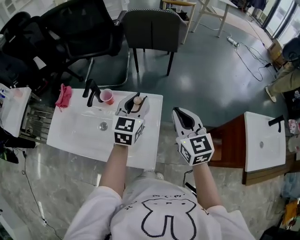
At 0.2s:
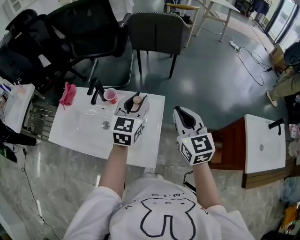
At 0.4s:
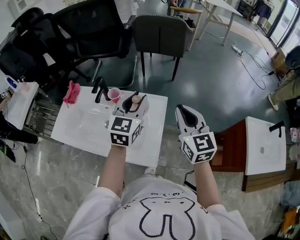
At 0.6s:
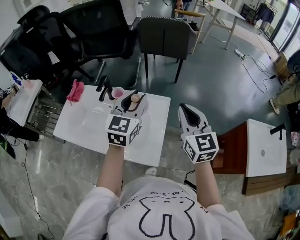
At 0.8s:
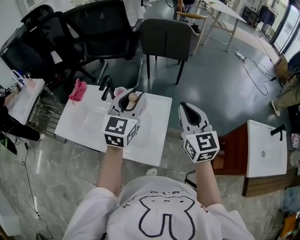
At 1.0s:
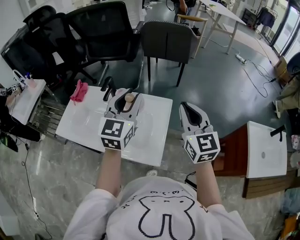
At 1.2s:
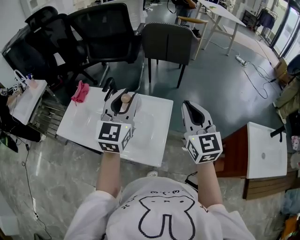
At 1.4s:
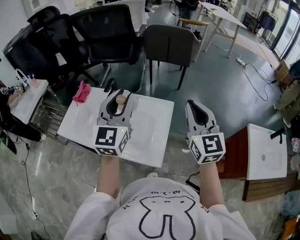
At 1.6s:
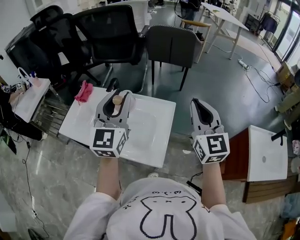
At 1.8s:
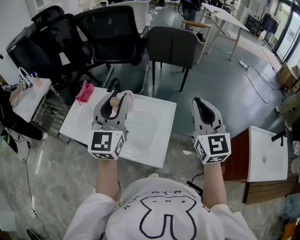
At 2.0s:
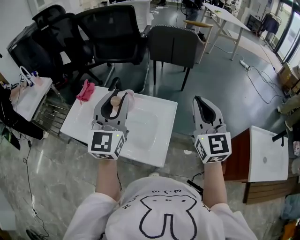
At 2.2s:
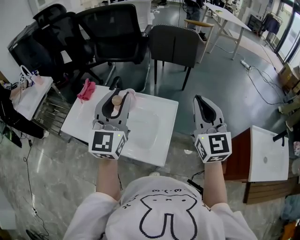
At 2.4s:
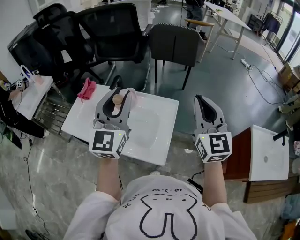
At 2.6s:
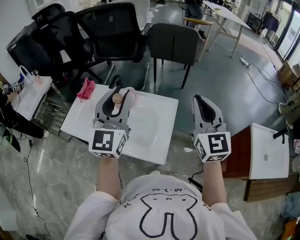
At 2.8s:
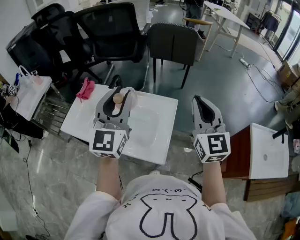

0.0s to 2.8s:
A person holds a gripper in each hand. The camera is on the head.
0.0s to 1.4s: The left gripper goes about 20 cm upward, to the left and backward, and turns by approximately 20 degrees. The right gripper heads upward, covering roughly 10 cm.
1.4s to 2.8s: The grippers move only a little.

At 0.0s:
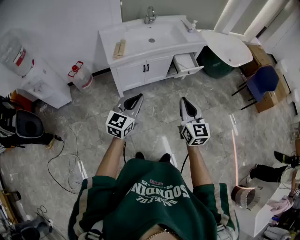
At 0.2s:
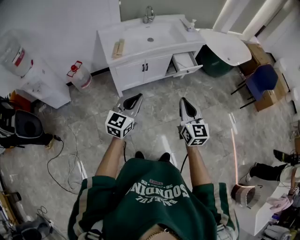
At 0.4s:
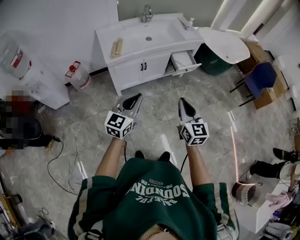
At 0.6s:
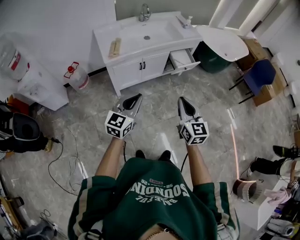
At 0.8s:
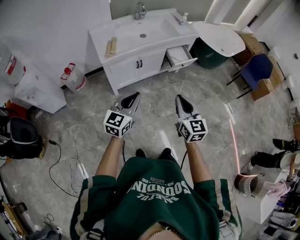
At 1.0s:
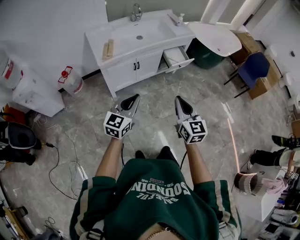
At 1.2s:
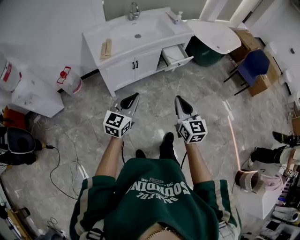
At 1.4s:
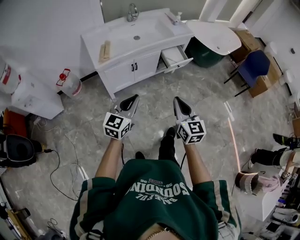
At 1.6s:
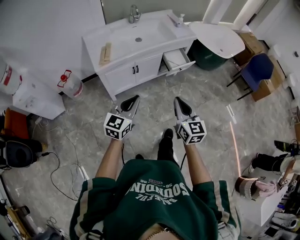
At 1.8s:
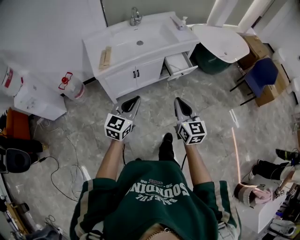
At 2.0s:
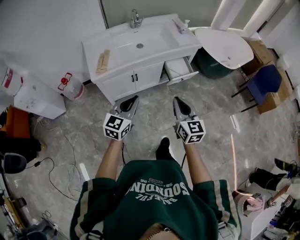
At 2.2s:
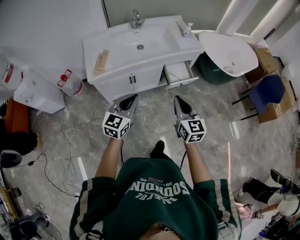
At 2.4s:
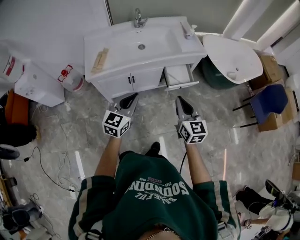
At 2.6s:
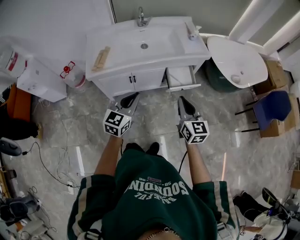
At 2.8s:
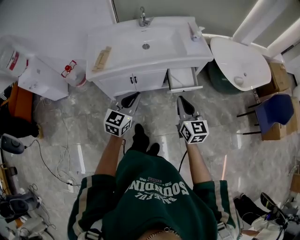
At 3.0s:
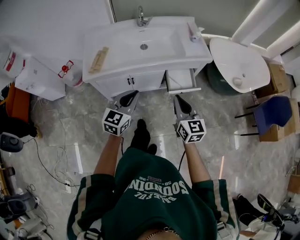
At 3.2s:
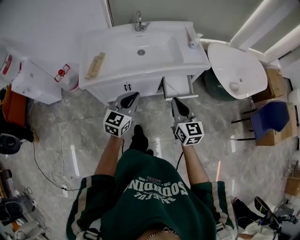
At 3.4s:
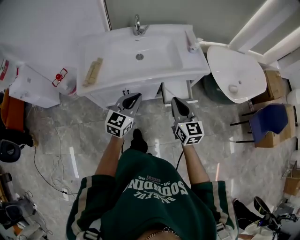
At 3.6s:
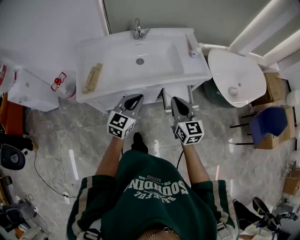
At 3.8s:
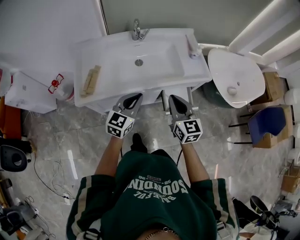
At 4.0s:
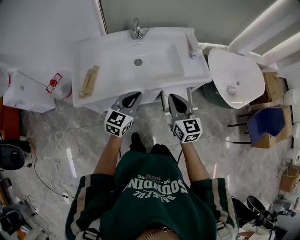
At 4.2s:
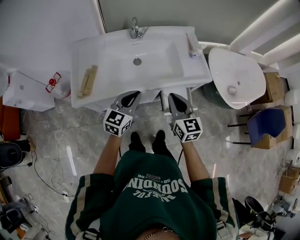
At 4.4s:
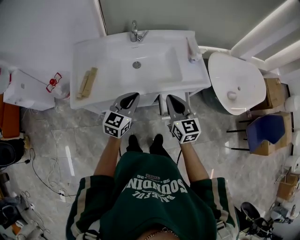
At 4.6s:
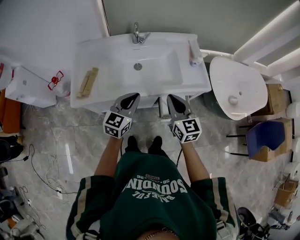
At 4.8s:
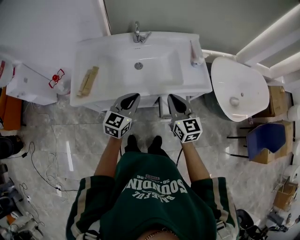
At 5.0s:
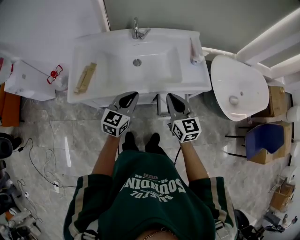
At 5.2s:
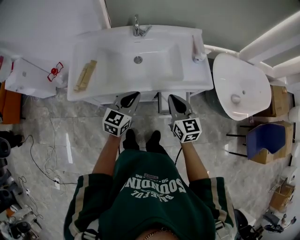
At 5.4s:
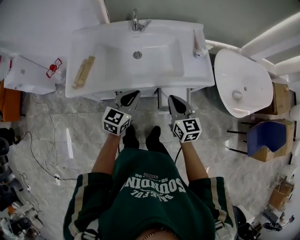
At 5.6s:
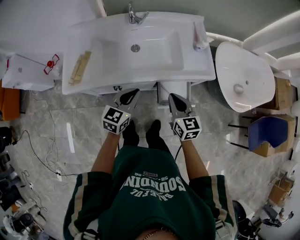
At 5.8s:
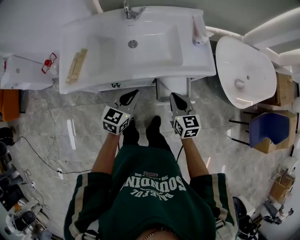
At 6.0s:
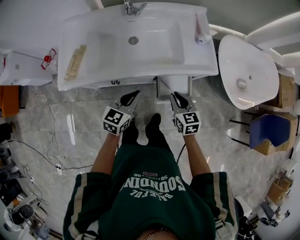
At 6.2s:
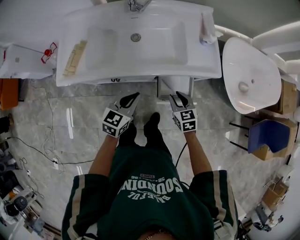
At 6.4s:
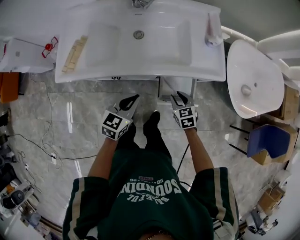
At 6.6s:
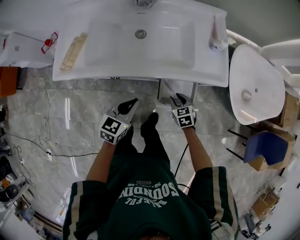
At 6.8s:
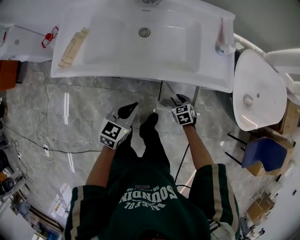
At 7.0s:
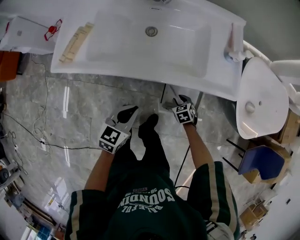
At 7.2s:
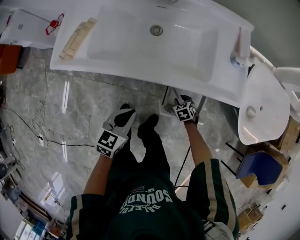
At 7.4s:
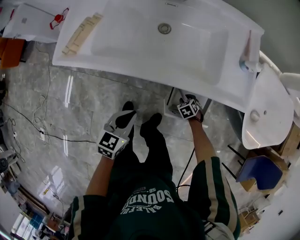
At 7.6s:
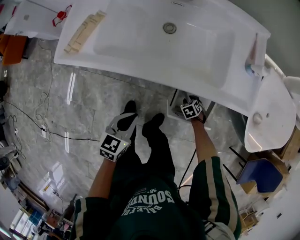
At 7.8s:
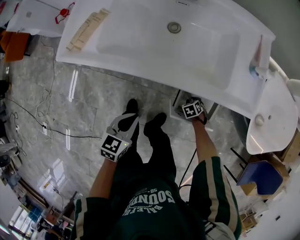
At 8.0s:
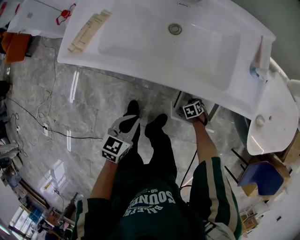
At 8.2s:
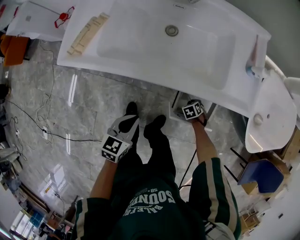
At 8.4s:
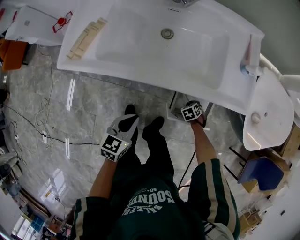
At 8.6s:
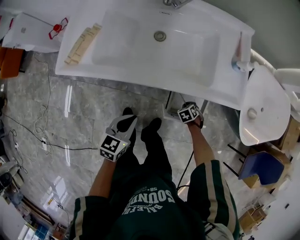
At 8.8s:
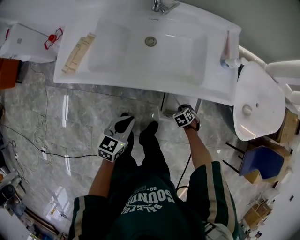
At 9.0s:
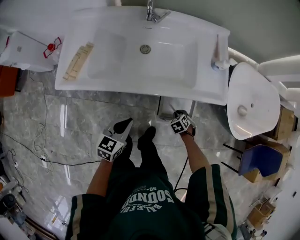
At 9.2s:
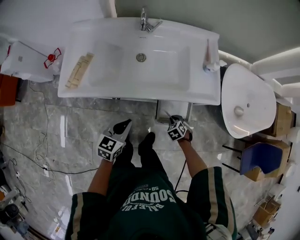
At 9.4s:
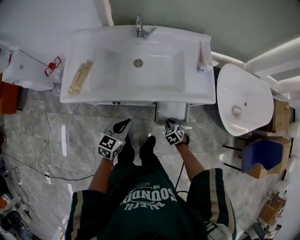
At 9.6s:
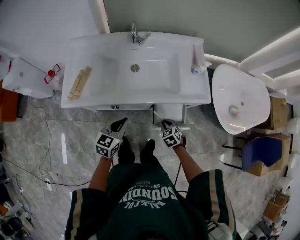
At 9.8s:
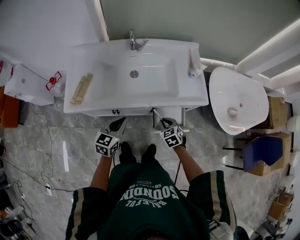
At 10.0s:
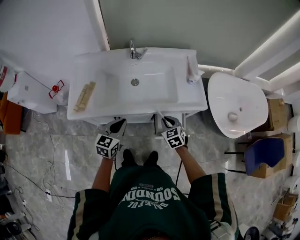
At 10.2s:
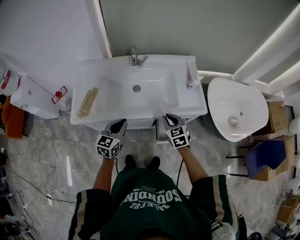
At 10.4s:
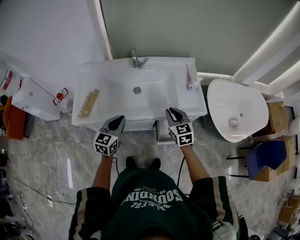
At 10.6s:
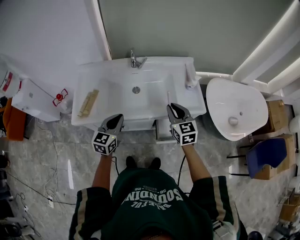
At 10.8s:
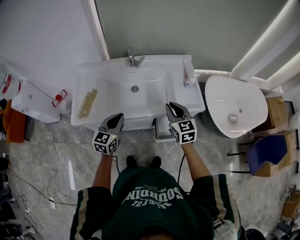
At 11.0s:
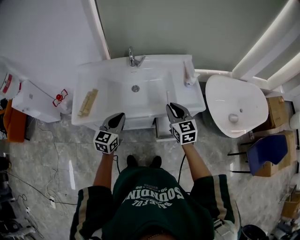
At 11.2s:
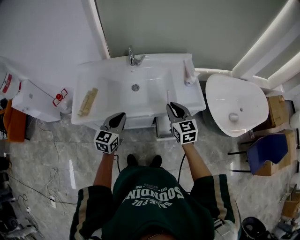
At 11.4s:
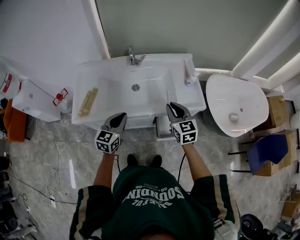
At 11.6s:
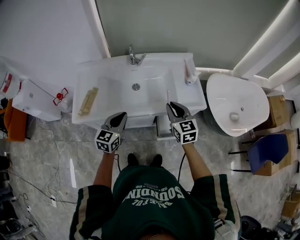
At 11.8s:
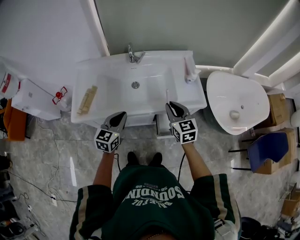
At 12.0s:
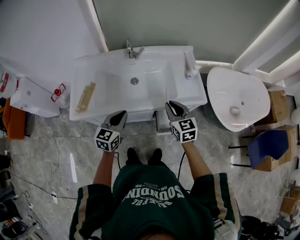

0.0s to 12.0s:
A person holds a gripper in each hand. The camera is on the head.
0.0s to 1.6s: The two grippers go approximately 5 cm forward.
1.6s to 3.0s: Both grippers move forward and to the right, approximately 30 cm.
3.0s to 4.4s: Both grippers travel together forward, about 20 cm.
4.4s to 6.0s: The right gripper goes some 20 cm downward and to the right, and turns by about 20 degrees. Meanwhile the left gripper is displaced downward and to the right by some 10 cm.
6.0s to 7.6s: The left gripper shifts approximately 15 cm downward, and swivels approximately 20 degrees, while the right gripper goes about 40 cm downward, and angles its fingers downward, by approximately 50 degrees.
7.6s to 9.0s: The left gripper travels upward by some 5 cm. The right gripper is displaced upward by approximately 15 cm.
9.0s to 10.4s: The right gripper heads upward, covering roughly 40 cm, and tilts its fingers about 50 degrees upward. Meanwhile the left gripper shifts approximately 15 cm upward.
10.4s to 12.0s: The grippers move only a little.

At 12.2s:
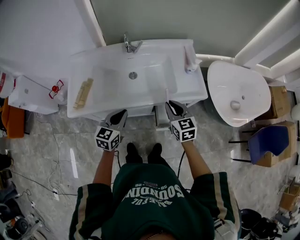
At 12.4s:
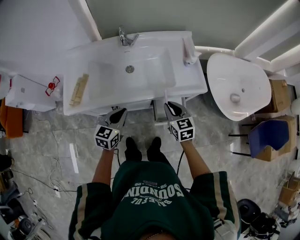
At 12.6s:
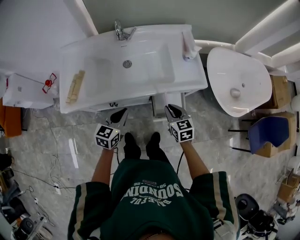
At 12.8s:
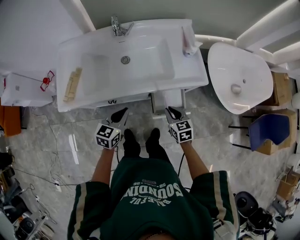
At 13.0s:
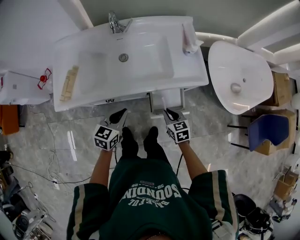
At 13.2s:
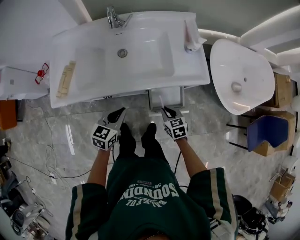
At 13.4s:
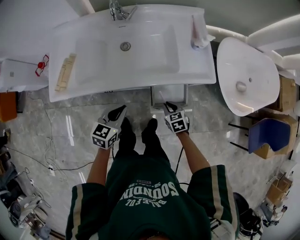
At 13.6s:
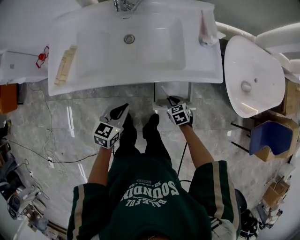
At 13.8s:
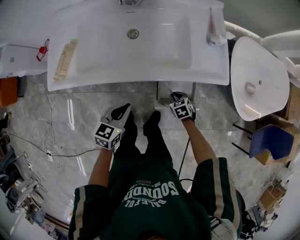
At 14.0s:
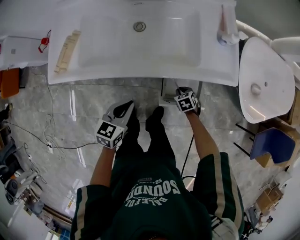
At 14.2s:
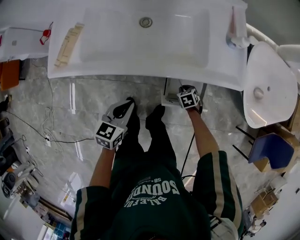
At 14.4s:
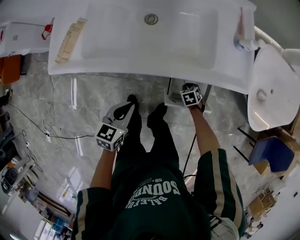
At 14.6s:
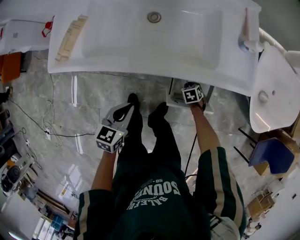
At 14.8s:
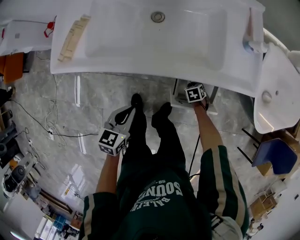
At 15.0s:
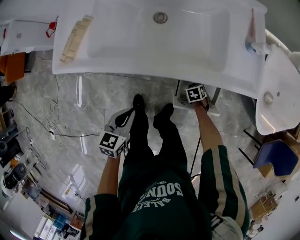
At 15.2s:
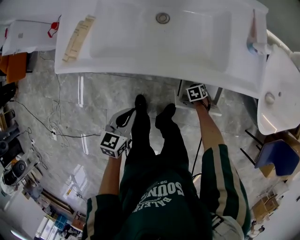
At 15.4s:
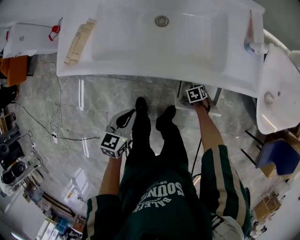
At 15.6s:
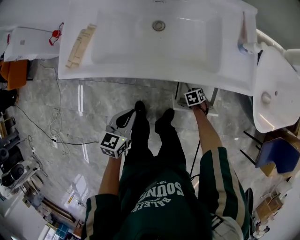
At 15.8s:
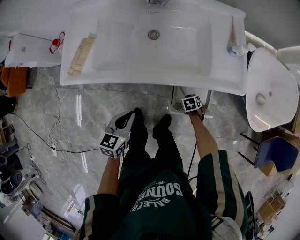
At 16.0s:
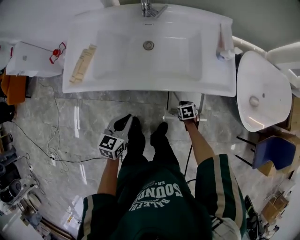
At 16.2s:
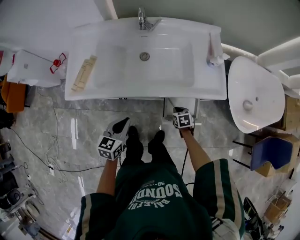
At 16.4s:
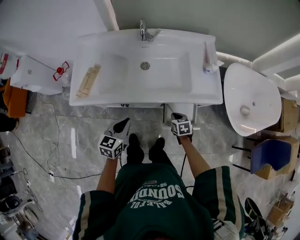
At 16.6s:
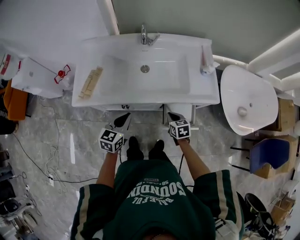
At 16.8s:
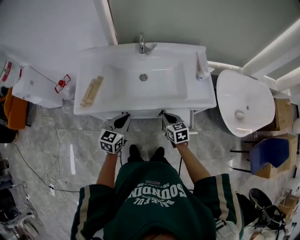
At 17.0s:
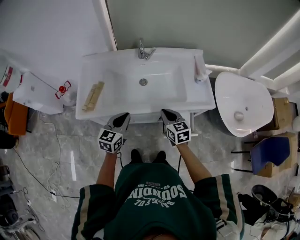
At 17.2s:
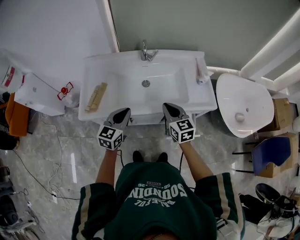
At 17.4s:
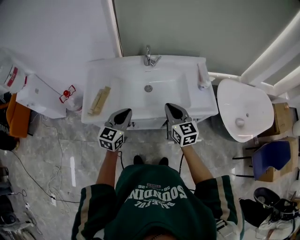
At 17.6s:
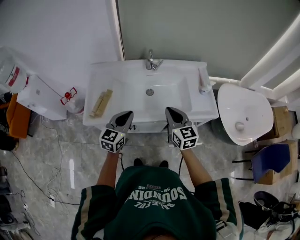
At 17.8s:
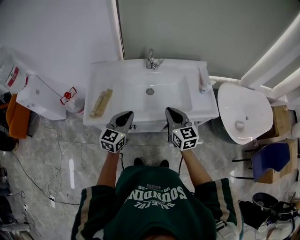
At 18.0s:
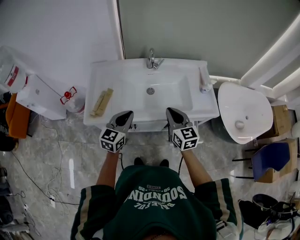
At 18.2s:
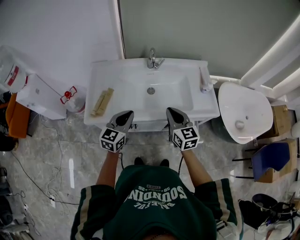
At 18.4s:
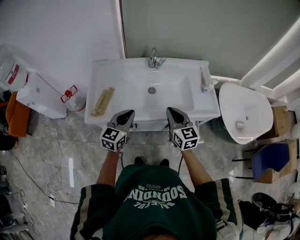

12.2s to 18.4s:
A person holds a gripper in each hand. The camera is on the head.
12.2s to 13.8s: The right gripper shifts some 35 cm downward, and angles its fingers downward, by roughly 40 degrees; the left gripper moves downward, about 15 cm.
13.8s to 15.4s: The right gripper shifts approximately 15 cm downward; the left gripper moves approximately 10 cm.
15.4s to 16.8s: The left gripper is displaced upward by about 15 cm, and turns by roughly 20 degrees. Meanwhile the right gripper goes approximately 40 cm upward, and tilts its fingers about 50 degrees upward.
16.8s to 18.4s: The right gripper moves upward and to the left, about 20 cm, and turns by some 30 degrees. Meanwhile the left gripper shifts about 10 cm upward and to the left.

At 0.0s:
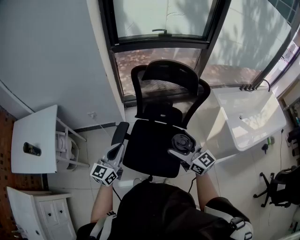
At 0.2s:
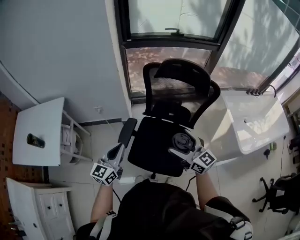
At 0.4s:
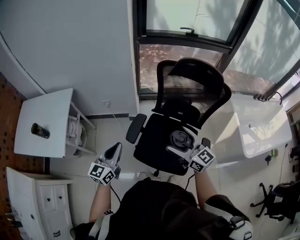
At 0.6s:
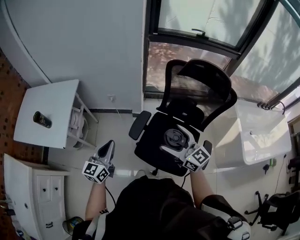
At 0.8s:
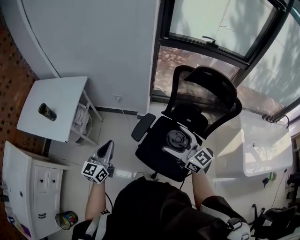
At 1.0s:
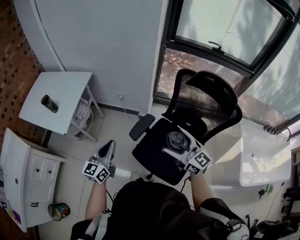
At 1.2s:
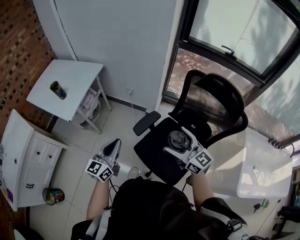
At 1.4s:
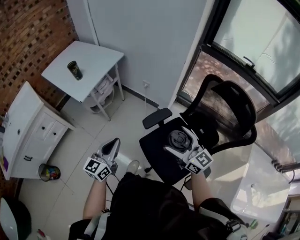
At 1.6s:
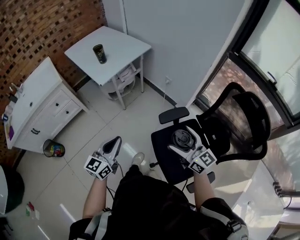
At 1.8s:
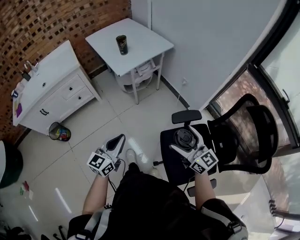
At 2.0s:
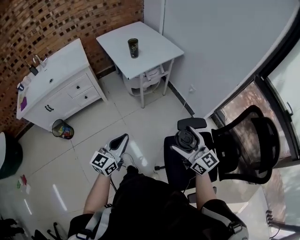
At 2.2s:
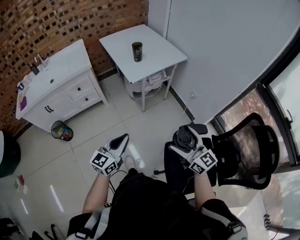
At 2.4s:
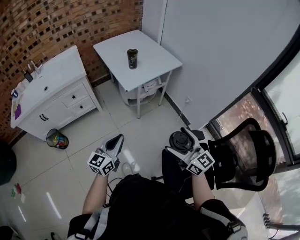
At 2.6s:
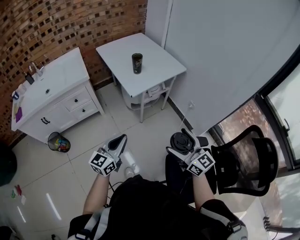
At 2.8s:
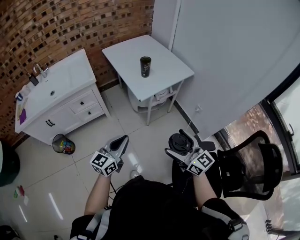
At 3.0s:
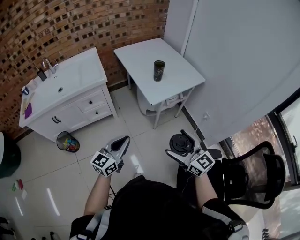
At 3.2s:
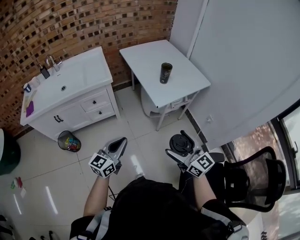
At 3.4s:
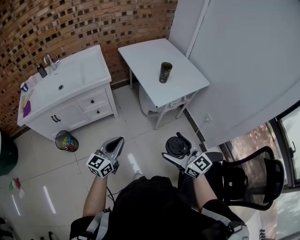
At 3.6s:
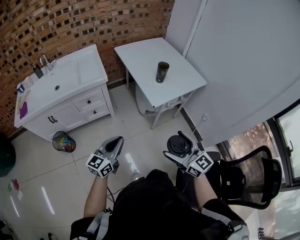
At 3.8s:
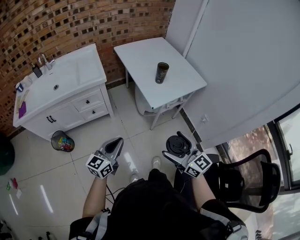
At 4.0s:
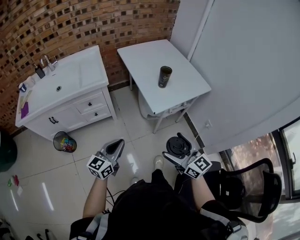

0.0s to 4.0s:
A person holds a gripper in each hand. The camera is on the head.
0.0s to 1.4s: The right gripper ends up roughly 15 cm from where it was, and swivels approximately 40 degrees; the left gripper ends up approximately 20 cm from where it was, and rotates some 40 degrees.
1.4s to 2.6s: The right gripper is displaced to the left and forward by some 25 cm, and turns by some 20 degrees, while the left gripper travels to the left by about 20 cm, and swivels about 20 degrees.
2.6s to 4.0s: The left gripper travels to the left and forward by approximately 15 cm. Meanwhile the right gripper heads forward and to the left, covering about 20 cm.
